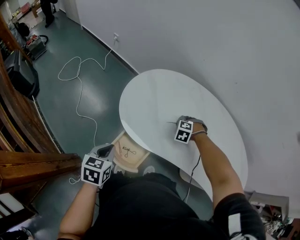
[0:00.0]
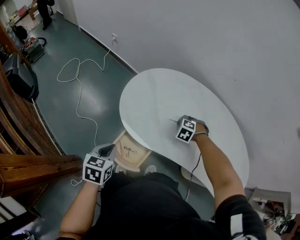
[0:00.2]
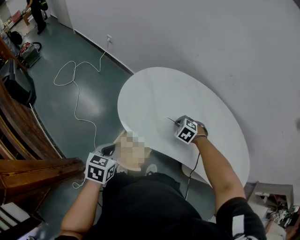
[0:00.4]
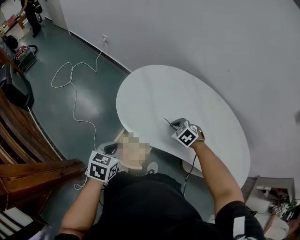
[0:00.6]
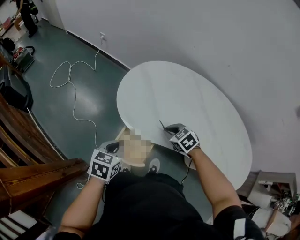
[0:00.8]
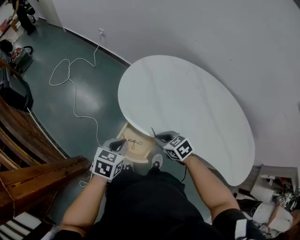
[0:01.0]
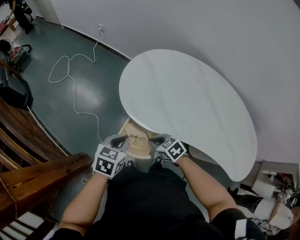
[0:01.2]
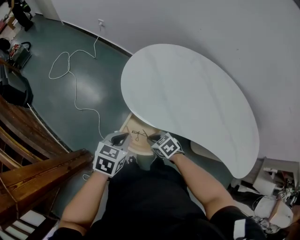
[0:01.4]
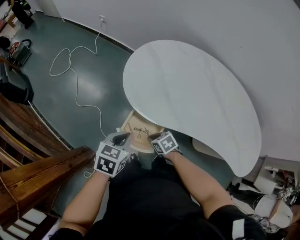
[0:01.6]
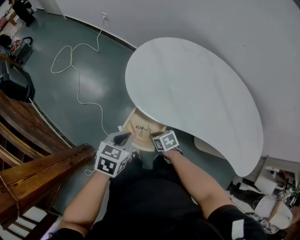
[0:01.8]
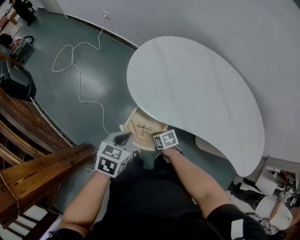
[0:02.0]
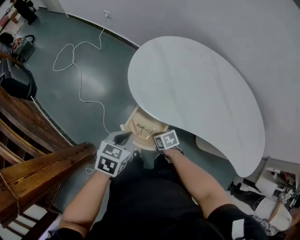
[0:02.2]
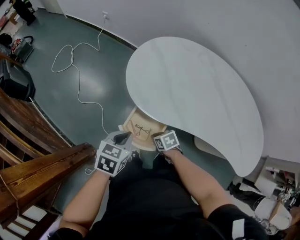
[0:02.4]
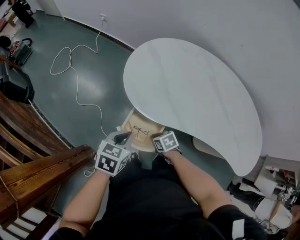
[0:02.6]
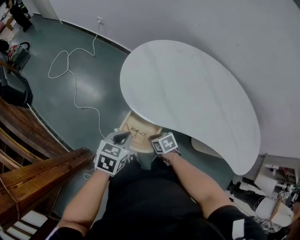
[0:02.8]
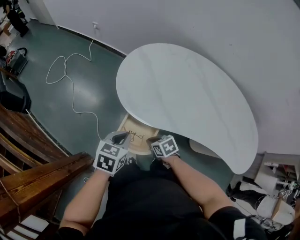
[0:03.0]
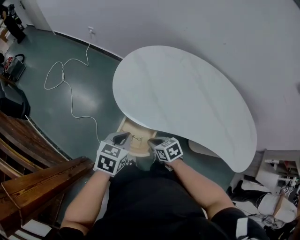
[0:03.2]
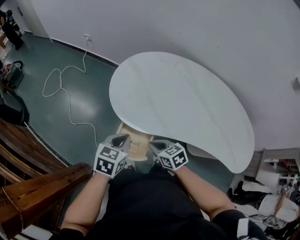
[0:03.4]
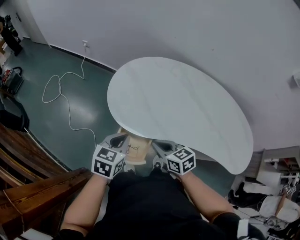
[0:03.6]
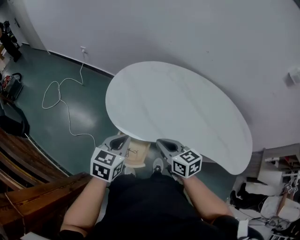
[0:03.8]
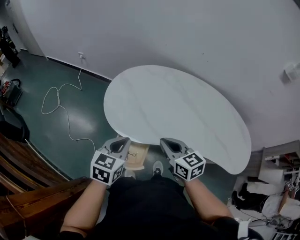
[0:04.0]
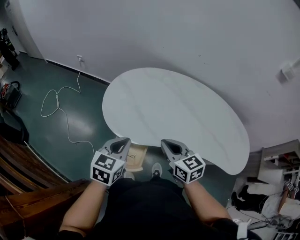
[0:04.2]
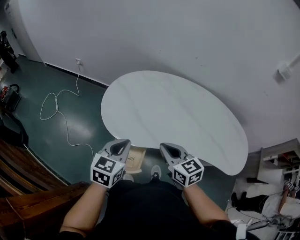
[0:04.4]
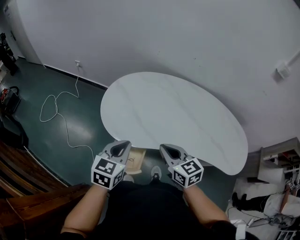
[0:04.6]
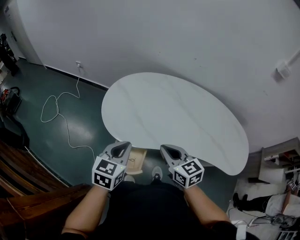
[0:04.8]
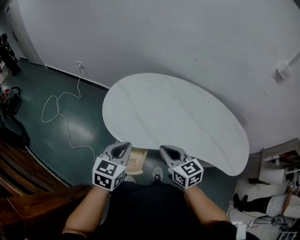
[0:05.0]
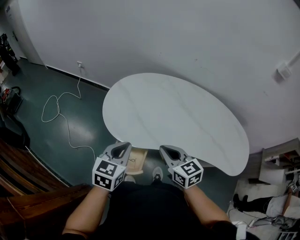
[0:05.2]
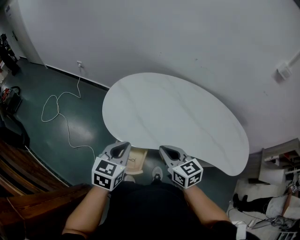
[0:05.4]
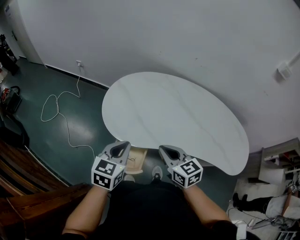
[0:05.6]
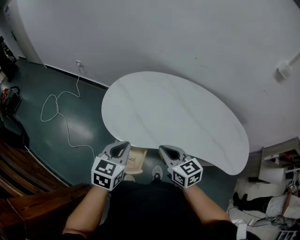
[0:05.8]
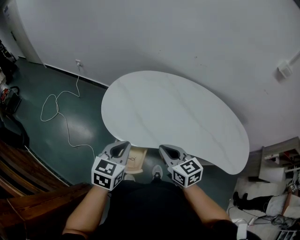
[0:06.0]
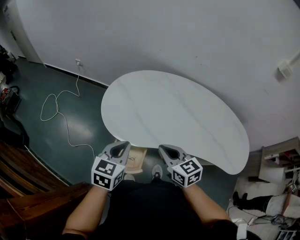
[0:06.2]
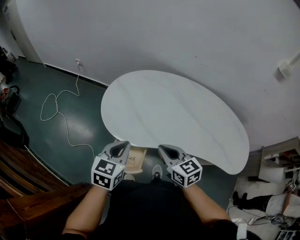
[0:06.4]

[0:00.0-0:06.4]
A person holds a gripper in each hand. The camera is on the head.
0:00.0 to 0:01.6: The right gripper moves approximately 30 cm, and rolls clockwise, seen from behind, by approximately 60 degrees.
0:01.6 to 0:03.2: The right gripper travels upward by roughly 5 cm.
0:03.2 to 0:04.8: The left gripper is displaced upward and to the right by some 15 cm. The right gripper travels upward and to the right by roughly 25 cm, and rotates some 40 degrees.
0:04.8 to 0:06.4: Both grippers stay about where they are.

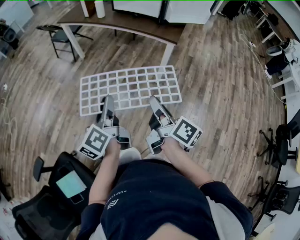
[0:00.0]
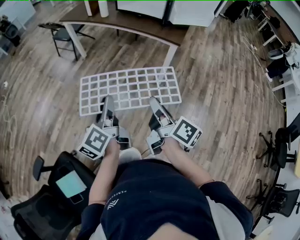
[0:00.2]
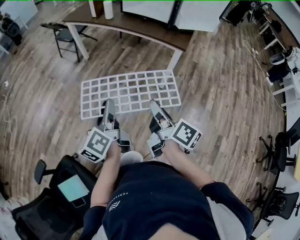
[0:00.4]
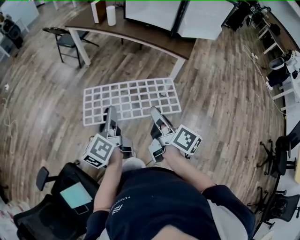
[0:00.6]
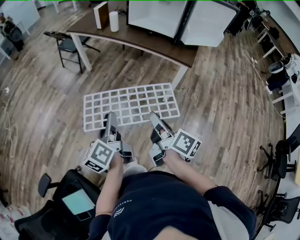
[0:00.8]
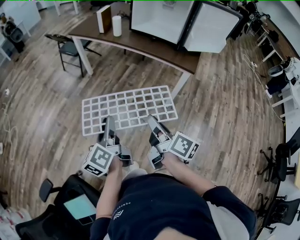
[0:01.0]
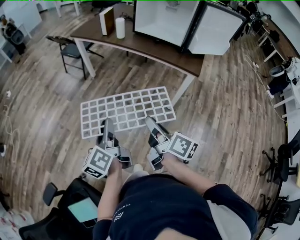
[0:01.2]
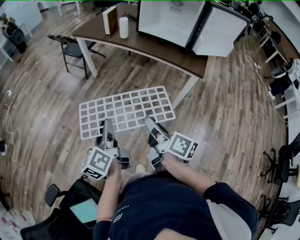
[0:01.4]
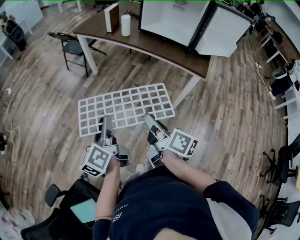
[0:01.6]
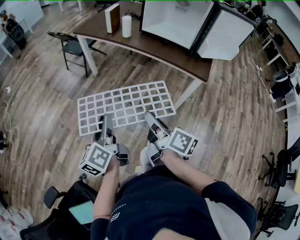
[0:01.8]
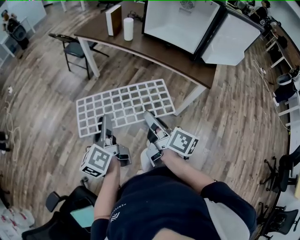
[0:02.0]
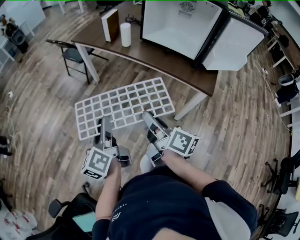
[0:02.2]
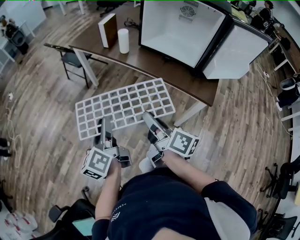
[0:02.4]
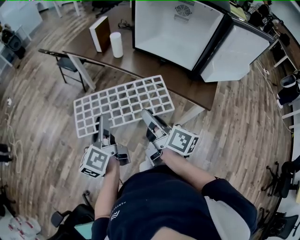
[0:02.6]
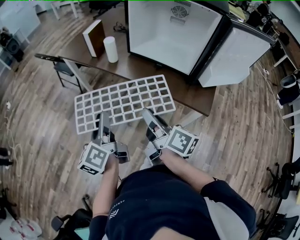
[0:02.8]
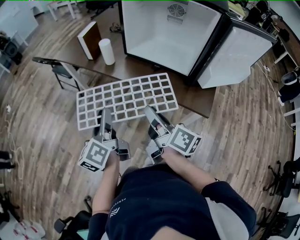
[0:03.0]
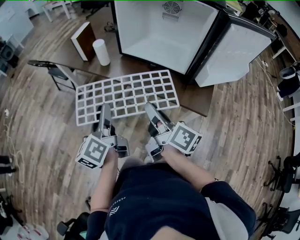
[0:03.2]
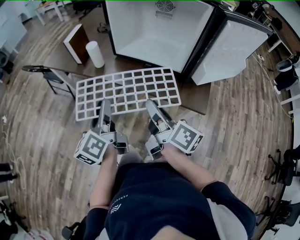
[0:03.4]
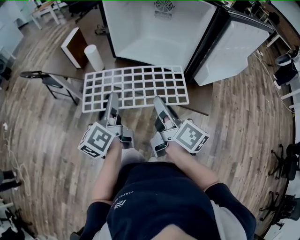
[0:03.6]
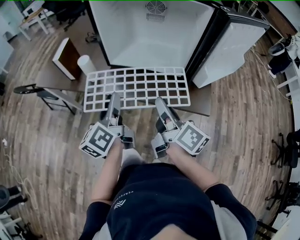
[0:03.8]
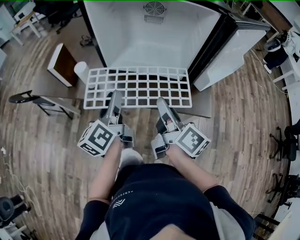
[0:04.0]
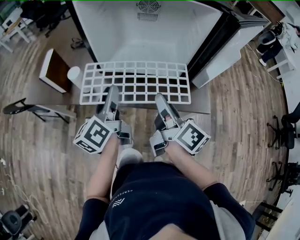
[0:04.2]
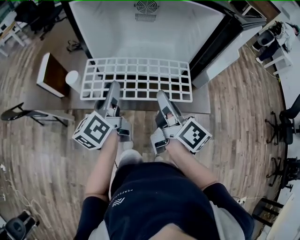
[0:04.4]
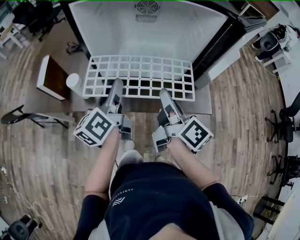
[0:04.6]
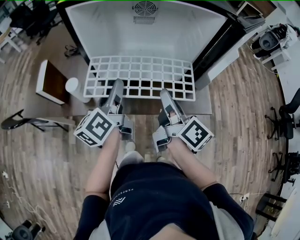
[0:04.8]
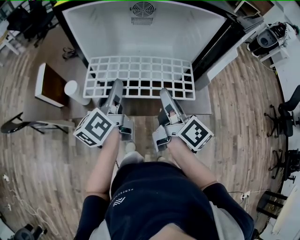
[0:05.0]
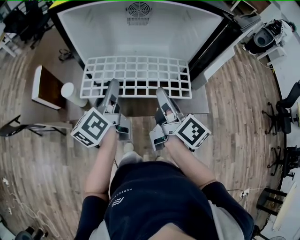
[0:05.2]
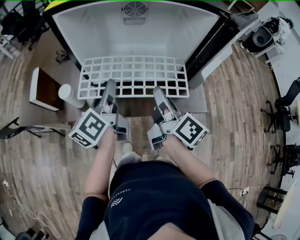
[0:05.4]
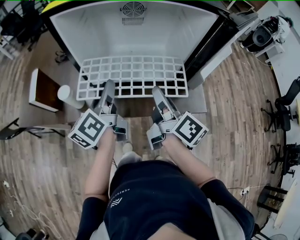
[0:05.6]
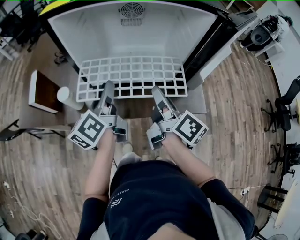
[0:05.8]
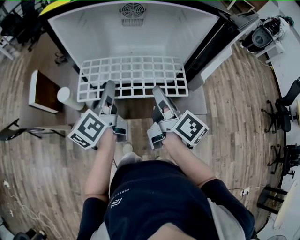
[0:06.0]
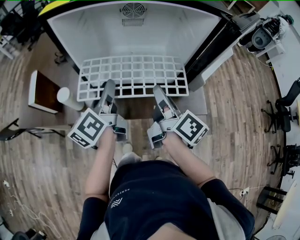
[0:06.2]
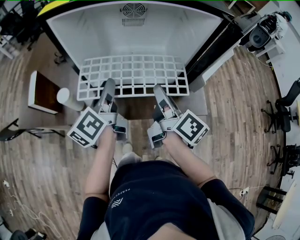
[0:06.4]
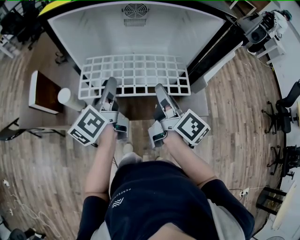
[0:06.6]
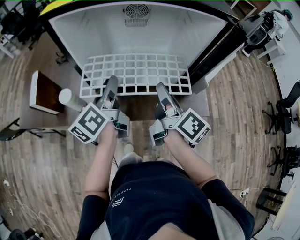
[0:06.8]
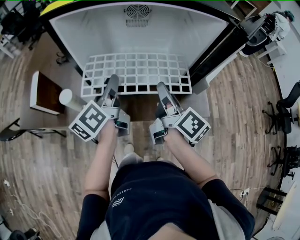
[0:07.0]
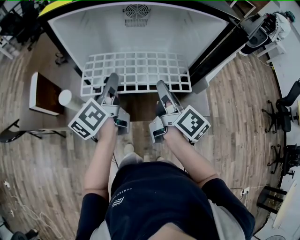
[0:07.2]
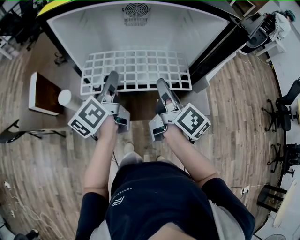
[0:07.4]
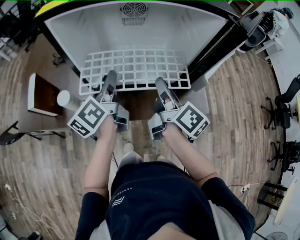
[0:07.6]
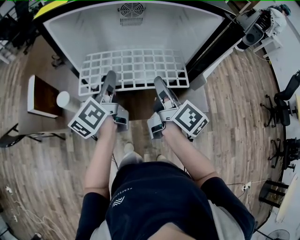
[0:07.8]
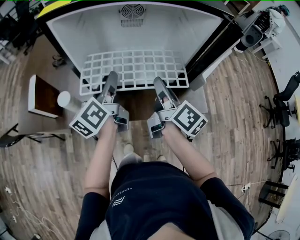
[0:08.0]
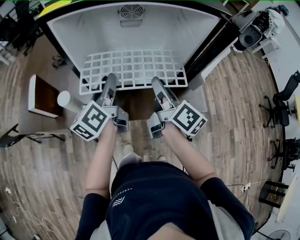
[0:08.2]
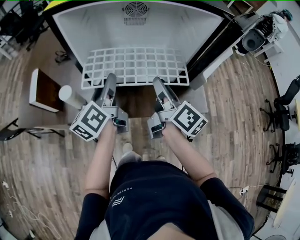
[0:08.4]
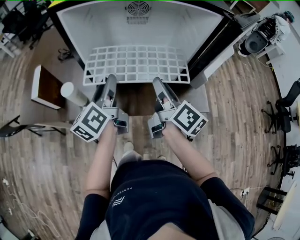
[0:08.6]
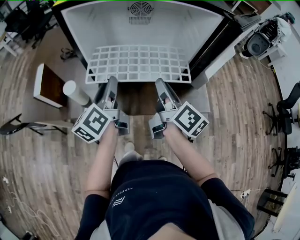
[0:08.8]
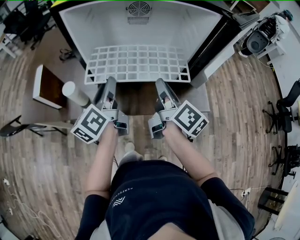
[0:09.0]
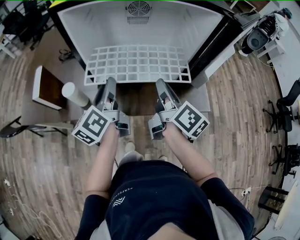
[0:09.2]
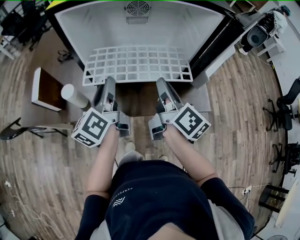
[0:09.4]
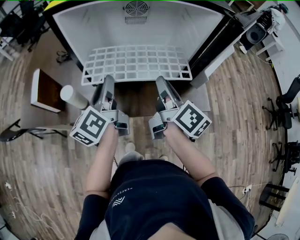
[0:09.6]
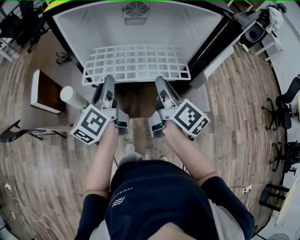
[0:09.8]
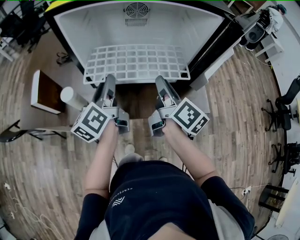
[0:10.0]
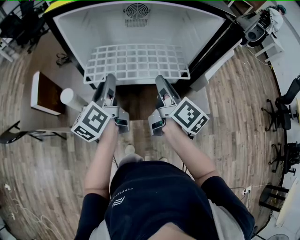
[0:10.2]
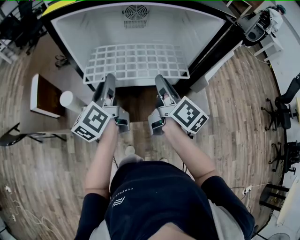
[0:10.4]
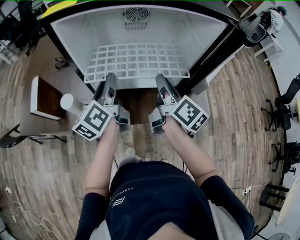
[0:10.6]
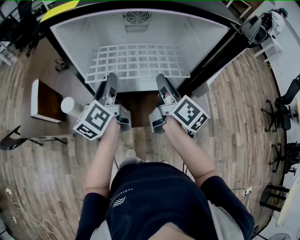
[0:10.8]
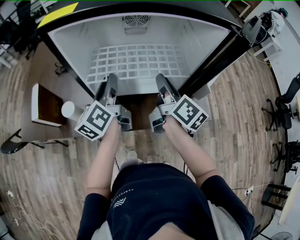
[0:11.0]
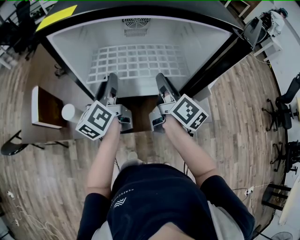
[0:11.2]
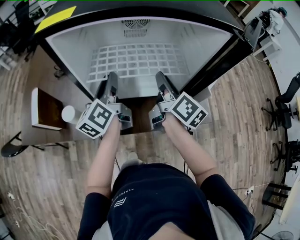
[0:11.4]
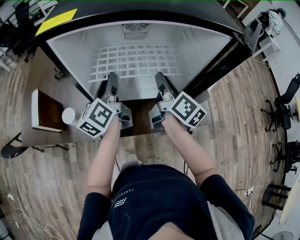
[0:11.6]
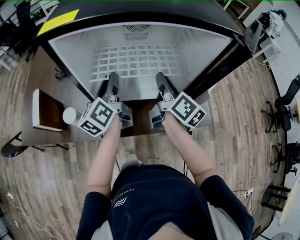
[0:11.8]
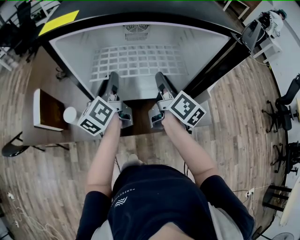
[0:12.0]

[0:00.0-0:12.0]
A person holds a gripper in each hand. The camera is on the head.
0:00.0 to 0:01.6: The left gripper goes roughly 20 cm to the left and forward; the right gripper shifts roughly 25 cm forward and to the left.
0:01.6 to 0:03.0: The grippers both shift forward and to the right by some 35 cm.
0:03.0 to 0:04.4: The right gripper ends up roughly 15 cm from where it was, and turns by about 30 degrees; the left gripper shifts by roughly 25 cm, and swivels some 30 degrees.
0:04.4 to 0:06.0: Both grippers travel together forward, roughly 5 cm.
0:06.0 to 0:10.4: The grippers stay close to where they were, moving slightly.
0:10.4 to 0:12.0: Both grippers travel together forward, approximately 10 cm.

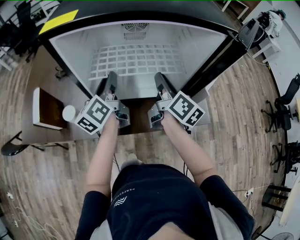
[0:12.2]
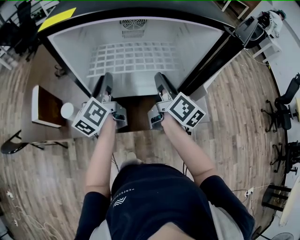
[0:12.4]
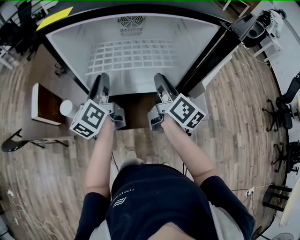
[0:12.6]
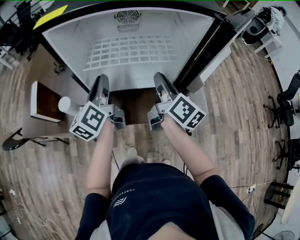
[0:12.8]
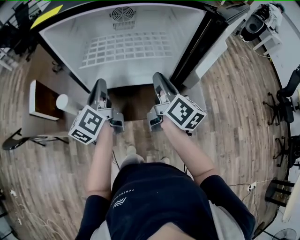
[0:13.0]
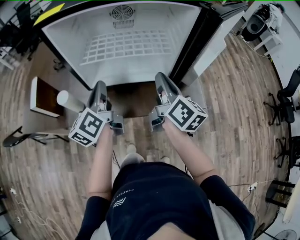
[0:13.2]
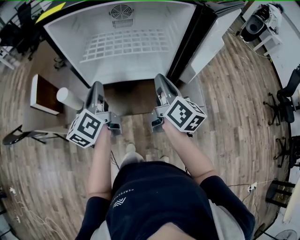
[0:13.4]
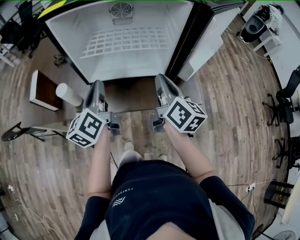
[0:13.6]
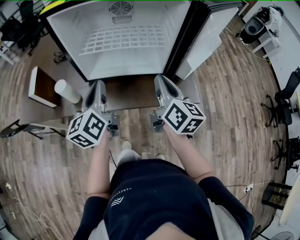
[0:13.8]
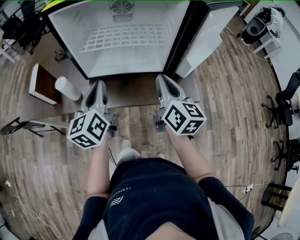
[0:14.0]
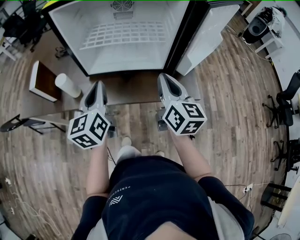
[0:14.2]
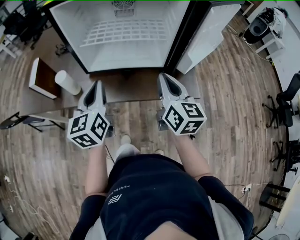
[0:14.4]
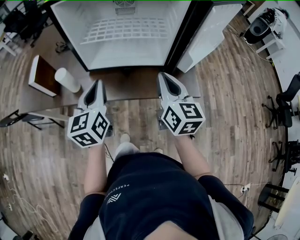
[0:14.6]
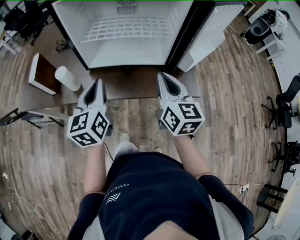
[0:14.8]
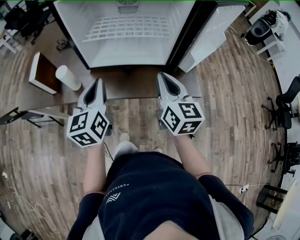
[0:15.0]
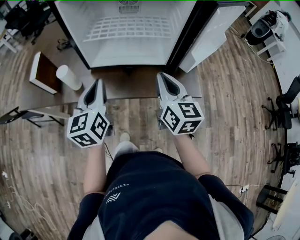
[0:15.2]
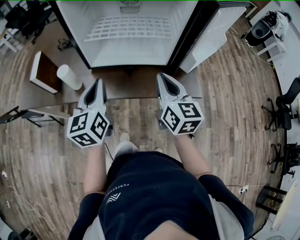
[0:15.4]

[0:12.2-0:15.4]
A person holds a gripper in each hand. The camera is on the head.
0:12.2 to 0:13.8: The grippers both shift backward by some 15 cm. The left gripper closes up.
0:13.8 to 0:15.4: There are only small adjustments of the grippers.

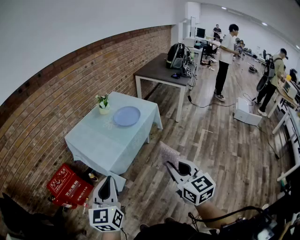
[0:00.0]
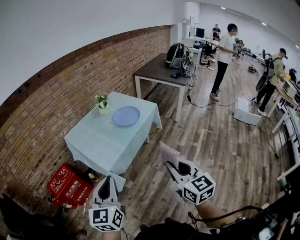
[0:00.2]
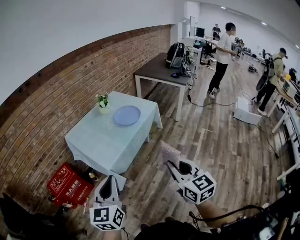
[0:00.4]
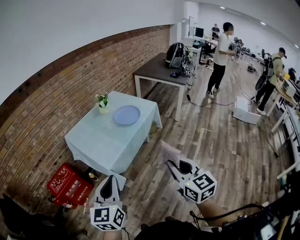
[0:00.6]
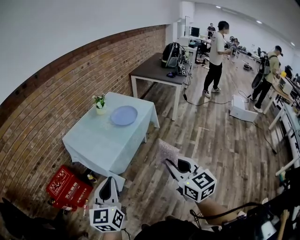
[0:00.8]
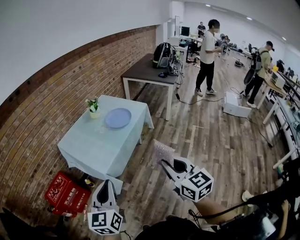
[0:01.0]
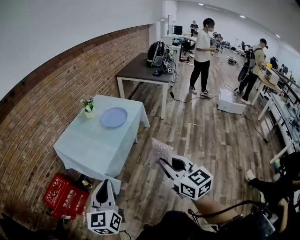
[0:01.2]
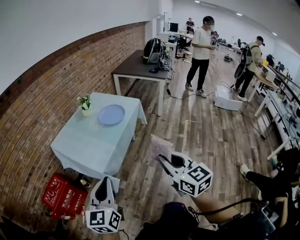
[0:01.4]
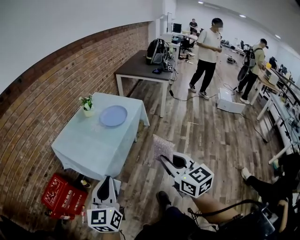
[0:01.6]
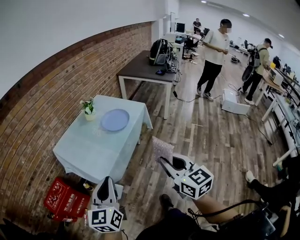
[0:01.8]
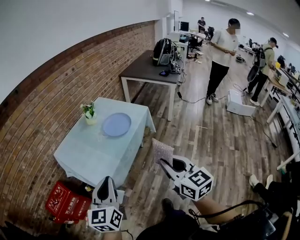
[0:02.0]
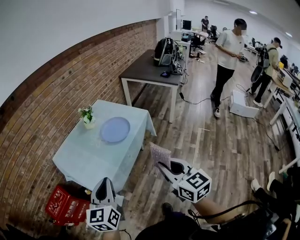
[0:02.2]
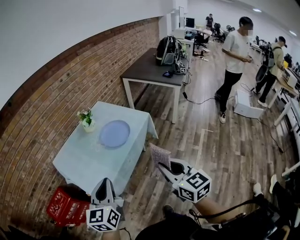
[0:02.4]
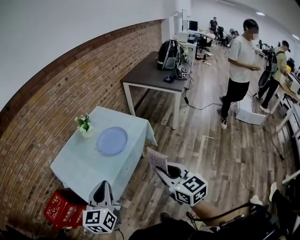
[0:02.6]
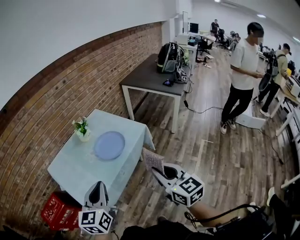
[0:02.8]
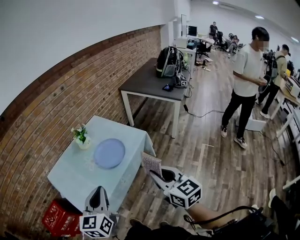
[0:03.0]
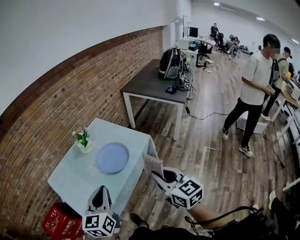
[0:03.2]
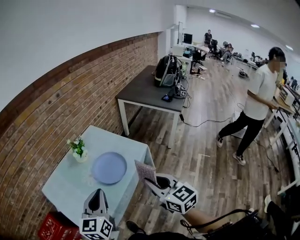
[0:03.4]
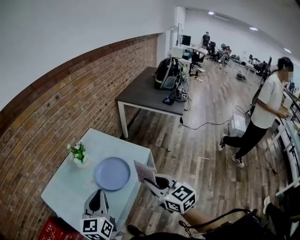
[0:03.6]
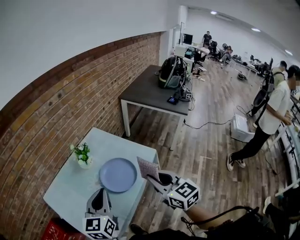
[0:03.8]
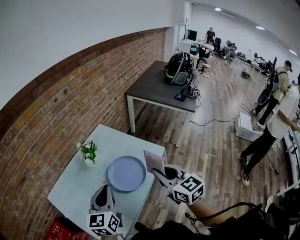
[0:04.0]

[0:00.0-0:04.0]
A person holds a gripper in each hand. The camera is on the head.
0:00.0 to 0:01.4: There are only small adjustments of the grippers.
0:01.4 to 0:02.6: The grippers both shift forward and to the right by about 25 cm.
0:02.6 to 0:04.0: The two grippers go roughly 30 cm forward.
